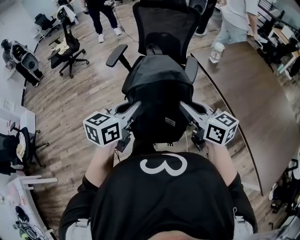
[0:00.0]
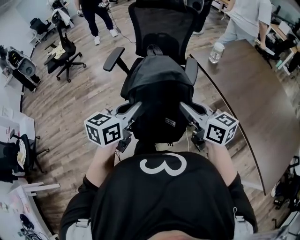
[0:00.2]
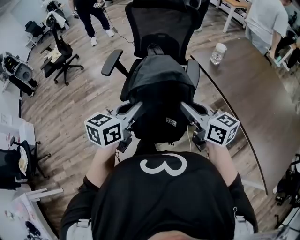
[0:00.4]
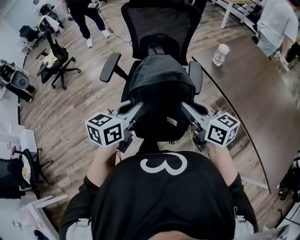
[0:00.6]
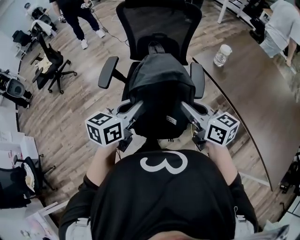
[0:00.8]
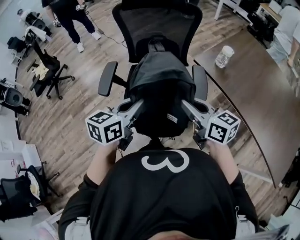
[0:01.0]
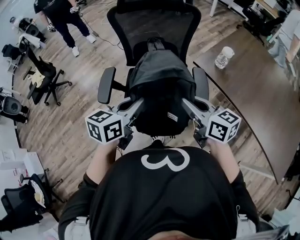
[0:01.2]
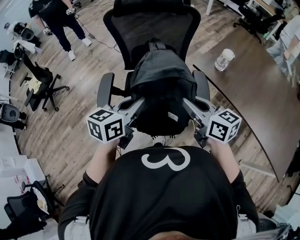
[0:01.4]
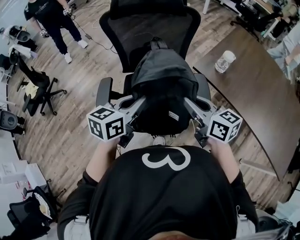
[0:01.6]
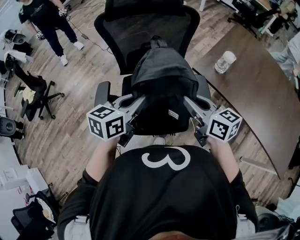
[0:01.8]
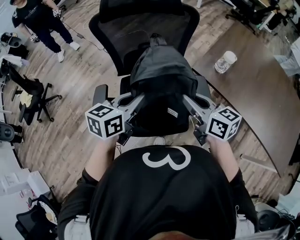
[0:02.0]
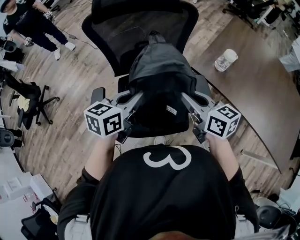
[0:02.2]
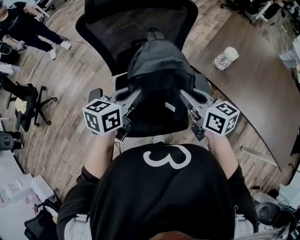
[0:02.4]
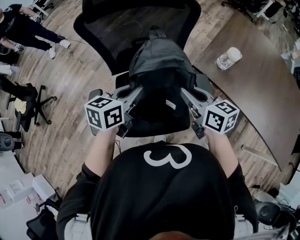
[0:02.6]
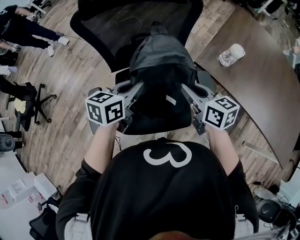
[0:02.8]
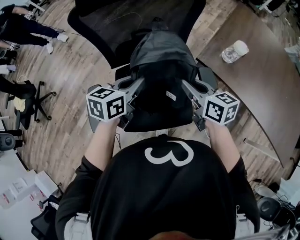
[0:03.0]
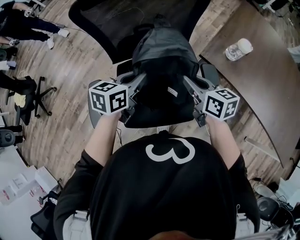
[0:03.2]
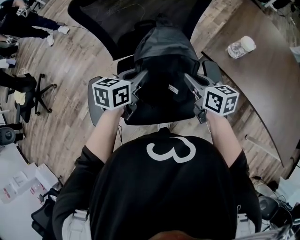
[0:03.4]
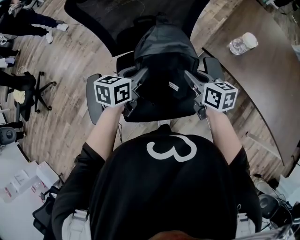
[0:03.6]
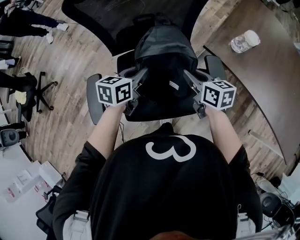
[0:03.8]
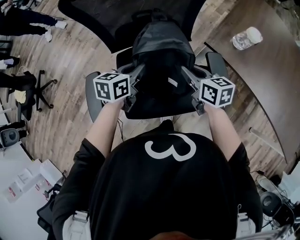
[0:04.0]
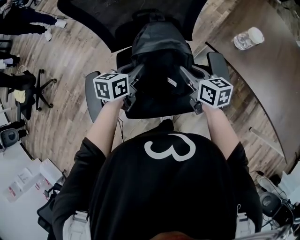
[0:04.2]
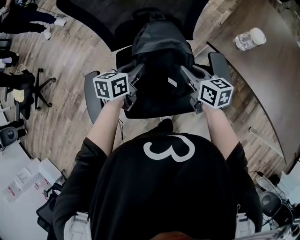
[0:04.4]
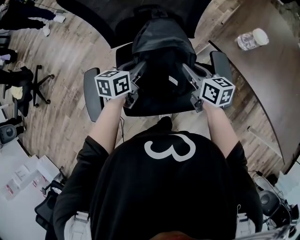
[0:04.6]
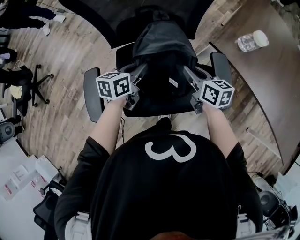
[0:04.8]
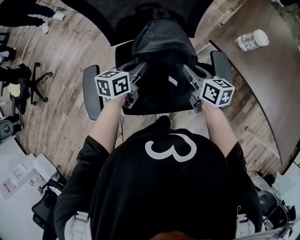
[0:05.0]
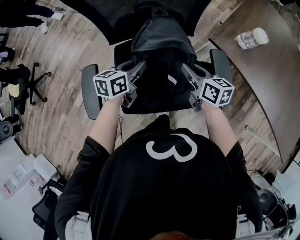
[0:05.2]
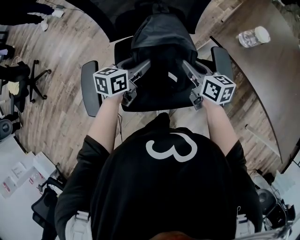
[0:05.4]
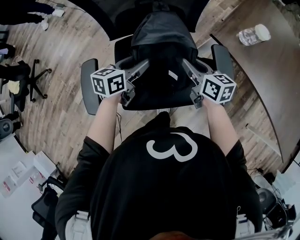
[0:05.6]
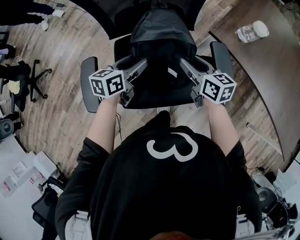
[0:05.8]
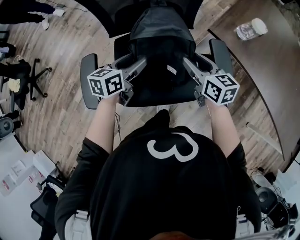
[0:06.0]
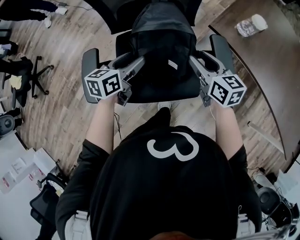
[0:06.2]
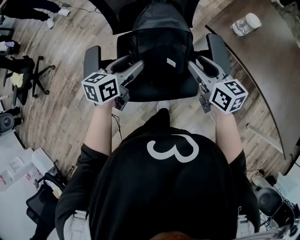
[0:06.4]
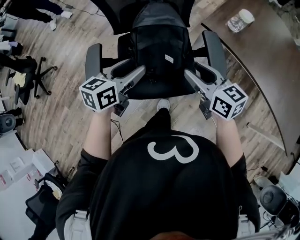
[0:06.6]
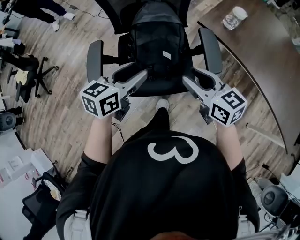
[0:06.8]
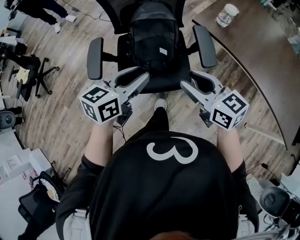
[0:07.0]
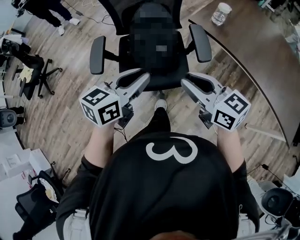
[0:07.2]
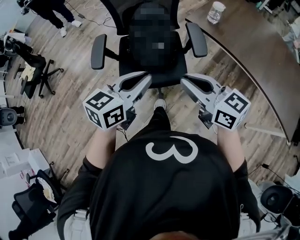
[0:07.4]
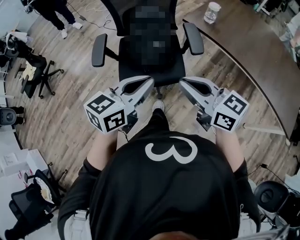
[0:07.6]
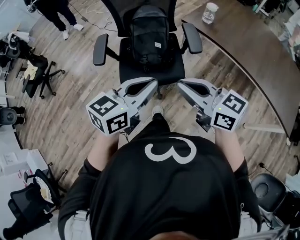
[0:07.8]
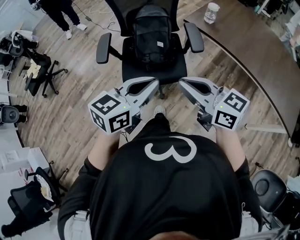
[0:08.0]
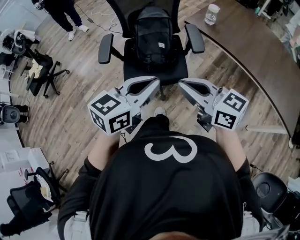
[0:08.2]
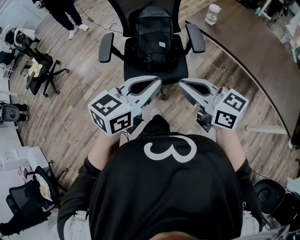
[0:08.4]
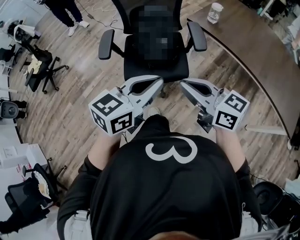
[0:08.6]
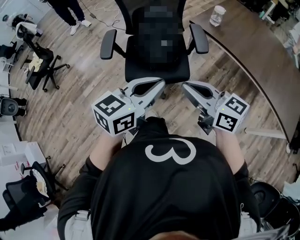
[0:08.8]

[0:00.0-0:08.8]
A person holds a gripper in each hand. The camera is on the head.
0:00.0 to 0:01.4: Both grippers travel together forward, approximately 30 cm.
0:01.4 to 0:03.0: The two grippers go approximately 20 cm forward and downward.
0:03.0 to 0:04.4: The grippers both shift downward by about 10 cm.
0:04.4 to 0:05.8: The left gripper opens up; the right gripper opens its fingers.
0:05.8 to 0:07.4: Both grippers travel together backward and upward, about 40 cm. The right gripper rotates roughly 30 degrees, and closes its fingers. The left gripper rotates roughly 20 degrees, and closes.
0:07.4 to 0:08.8: Both grippers move backward, about 10 cm.

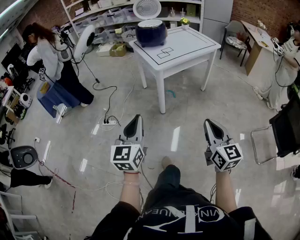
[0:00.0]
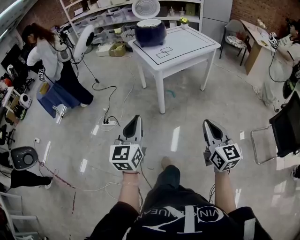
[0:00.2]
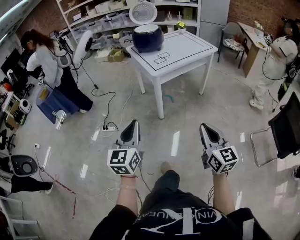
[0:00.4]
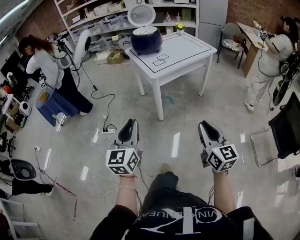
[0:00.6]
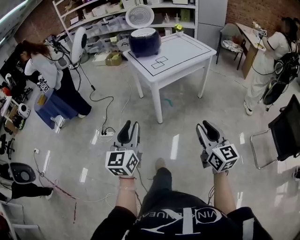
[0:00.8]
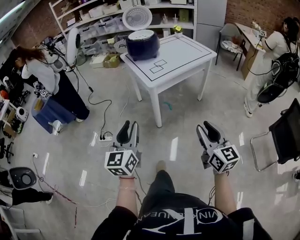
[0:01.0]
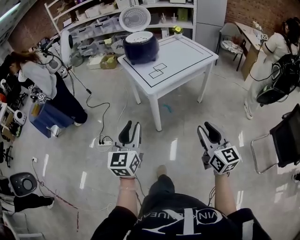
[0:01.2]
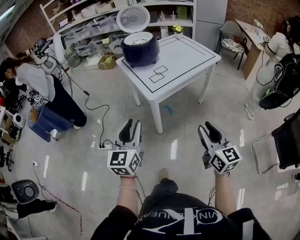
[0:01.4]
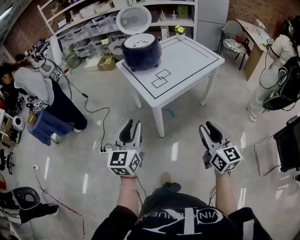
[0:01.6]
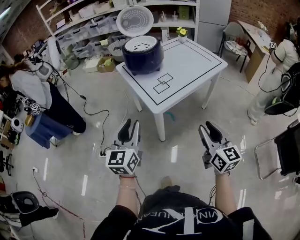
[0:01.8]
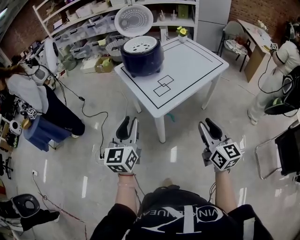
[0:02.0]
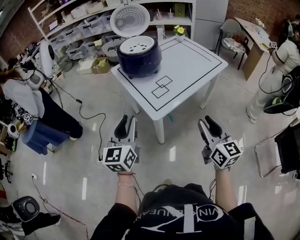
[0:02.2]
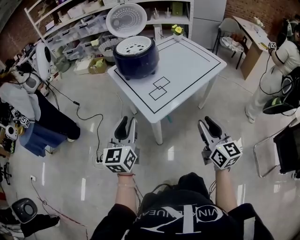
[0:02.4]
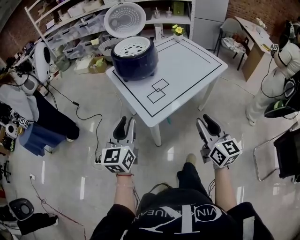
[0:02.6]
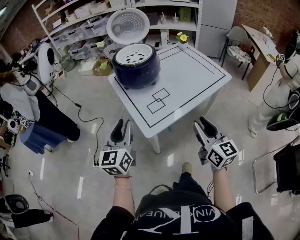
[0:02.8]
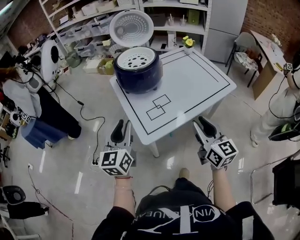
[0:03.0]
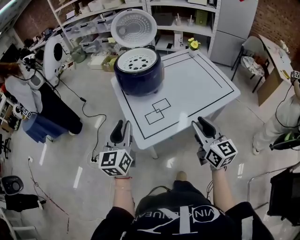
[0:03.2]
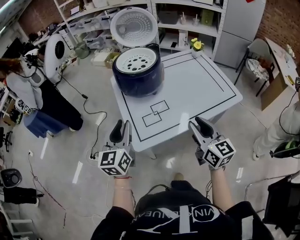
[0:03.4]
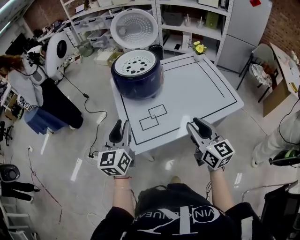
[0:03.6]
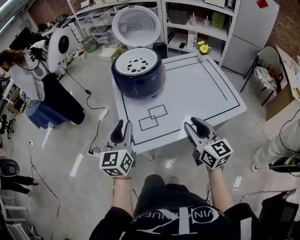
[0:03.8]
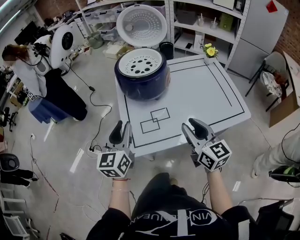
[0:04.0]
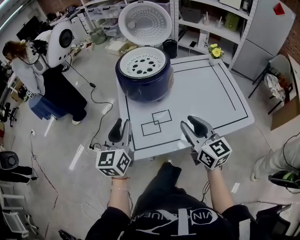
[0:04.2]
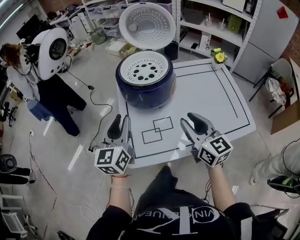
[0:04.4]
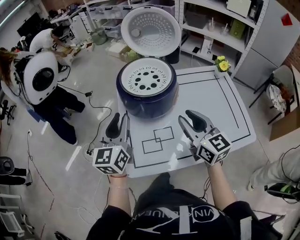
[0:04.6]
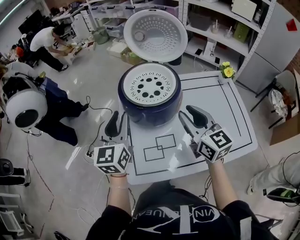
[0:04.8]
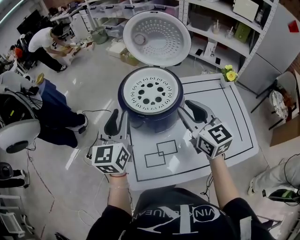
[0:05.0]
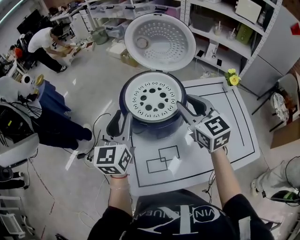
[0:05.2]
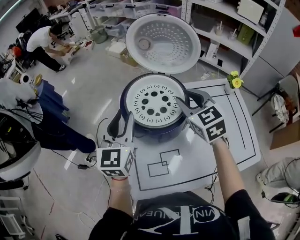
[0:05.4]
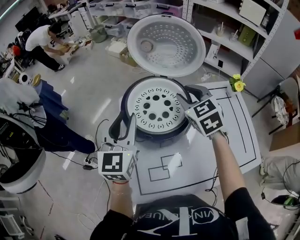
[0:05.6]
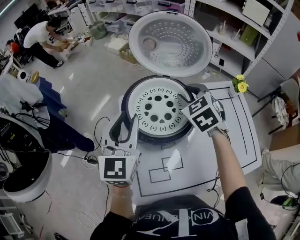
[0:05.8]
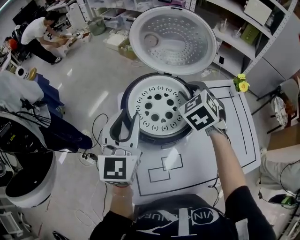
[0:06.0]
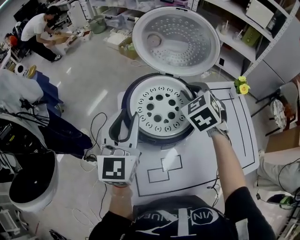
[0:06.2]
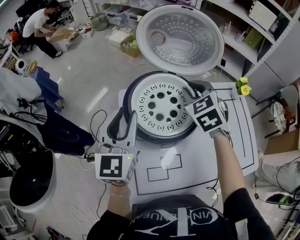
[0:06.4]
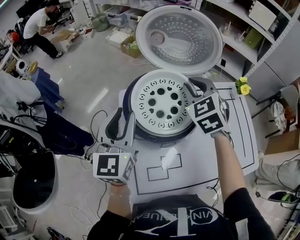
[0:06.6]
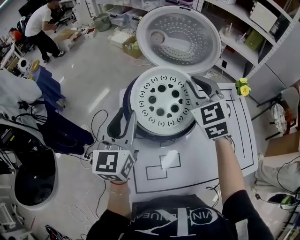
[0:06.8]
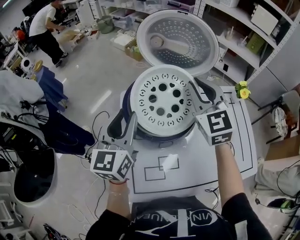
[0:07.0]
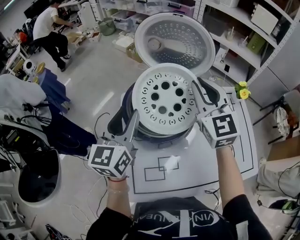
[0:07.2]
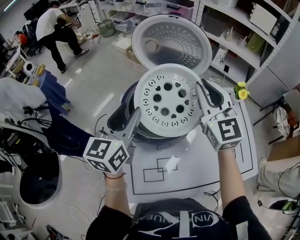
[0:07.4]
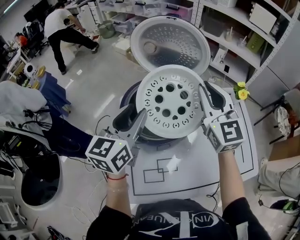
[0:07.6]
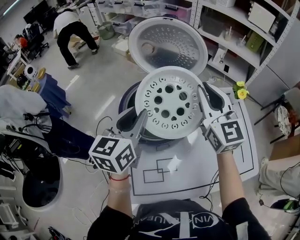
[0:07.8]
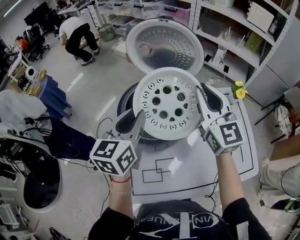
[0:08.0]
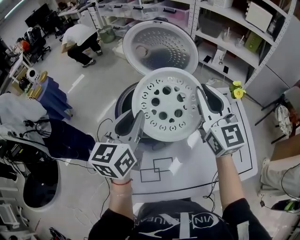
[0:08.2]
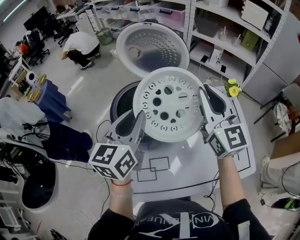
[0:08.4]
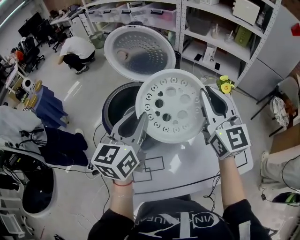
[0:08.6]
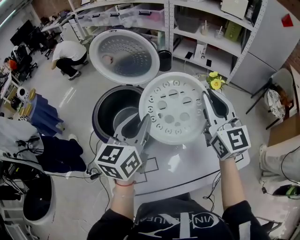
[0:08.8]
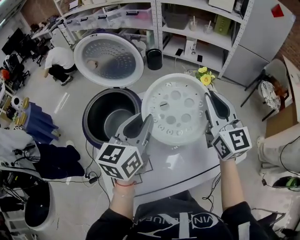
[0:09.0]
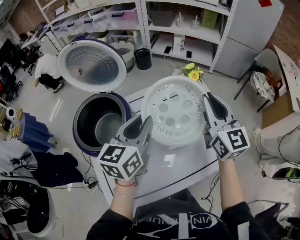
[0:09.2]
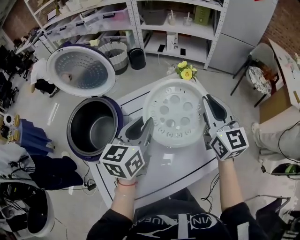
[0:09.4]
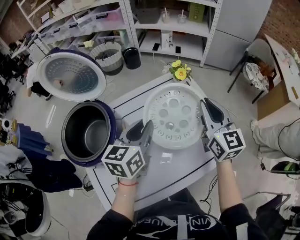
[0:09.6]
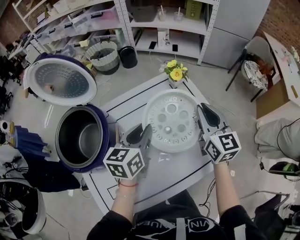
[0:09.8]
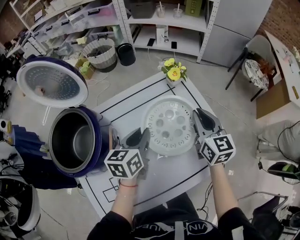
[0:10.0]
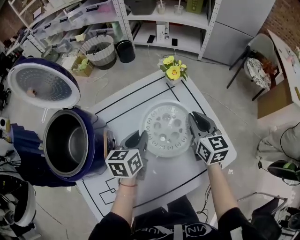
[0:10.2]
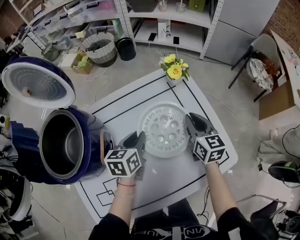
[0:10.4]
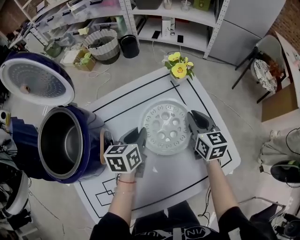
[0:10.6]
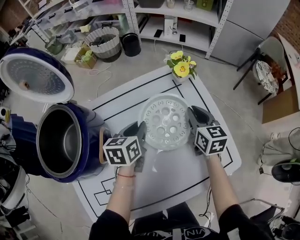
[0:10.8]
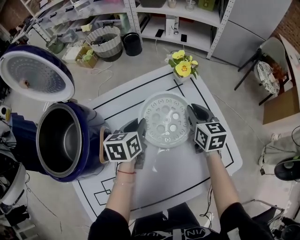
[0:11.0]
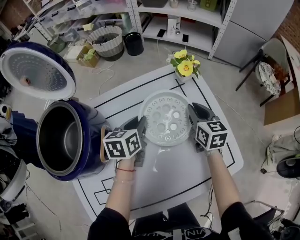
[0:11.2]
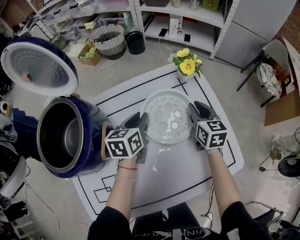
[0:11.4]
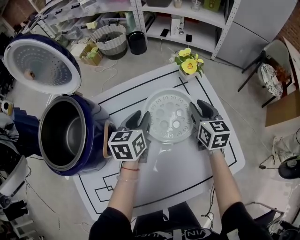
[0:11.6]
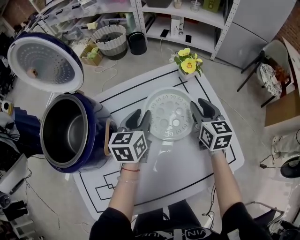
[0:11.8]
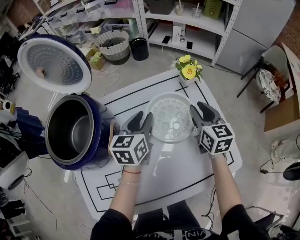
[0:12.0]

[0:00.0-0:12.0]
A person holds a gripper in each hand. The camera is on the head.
0:00.0 to 0:01.6: The two grippers go about 30 cm forward. The right gripper opens up.
0:01.6 to 0:03.0: Both grippers travel together forward, some 25 cm.
0:03.0 to 0:04.4: The right gripper goes about 20 cm forward, and rotates roughly 30 degrees. The left gripper heads forward and to the right, covering approximately 15 cm.
0:04.4 to 0:06.0: The right gripper shifts roughly 35 cm forward, and points its fingers approximately 40 degrees further downward. The left gripper travels forward by some 20 cm.
0:06.0 to 0:07.6: The left gripper turns by approximately 20 degrees; the right gripper shifts roughly 15 cm upward and backward, and angles its fingers upward, by some 40 degrees.
0:07.6 to 0:09.0: The grippers both shift to the right by roughly 20 cm.
0:09.0 to 0:10.4: Both grippers travel together downward and to the right, approximately 25 cm. The left gripper rotates some 30 degrees, while the right gripper turns by about 30 degrees.
0:10.4 to 0:12.0: The left gripper moves upward, some 5 cm.

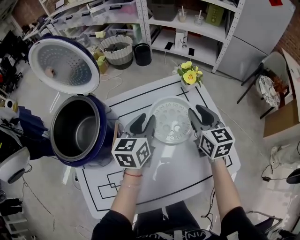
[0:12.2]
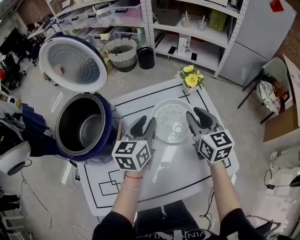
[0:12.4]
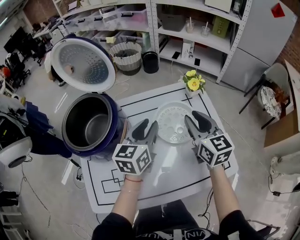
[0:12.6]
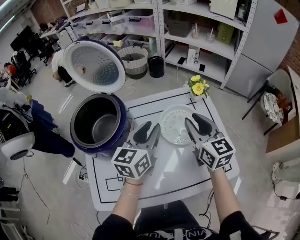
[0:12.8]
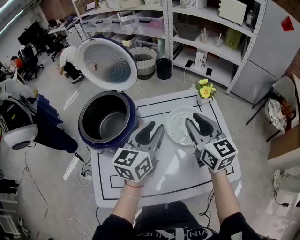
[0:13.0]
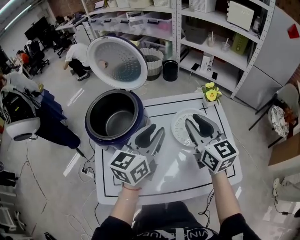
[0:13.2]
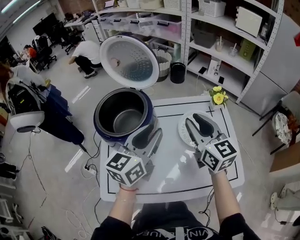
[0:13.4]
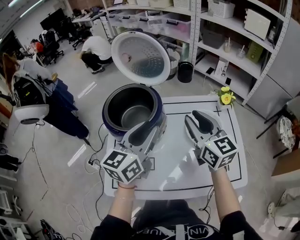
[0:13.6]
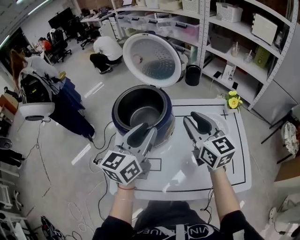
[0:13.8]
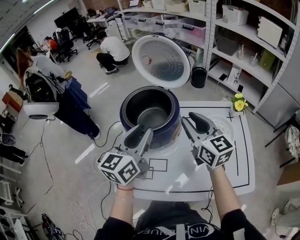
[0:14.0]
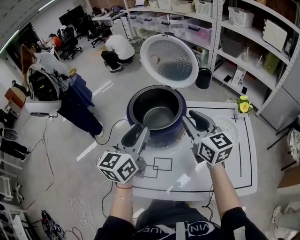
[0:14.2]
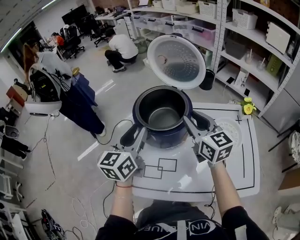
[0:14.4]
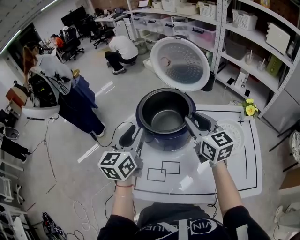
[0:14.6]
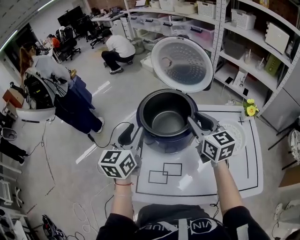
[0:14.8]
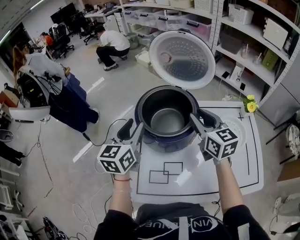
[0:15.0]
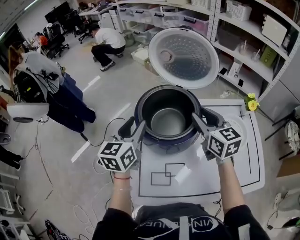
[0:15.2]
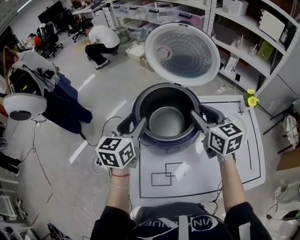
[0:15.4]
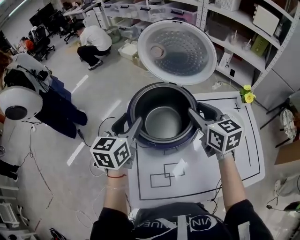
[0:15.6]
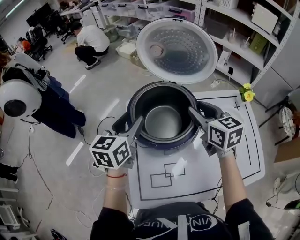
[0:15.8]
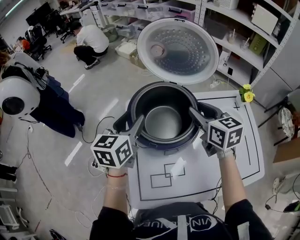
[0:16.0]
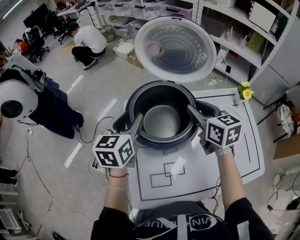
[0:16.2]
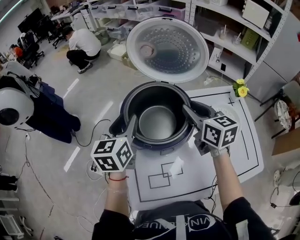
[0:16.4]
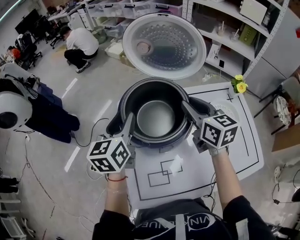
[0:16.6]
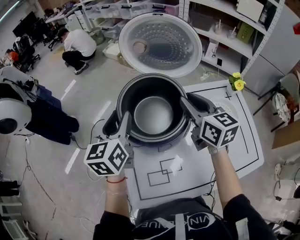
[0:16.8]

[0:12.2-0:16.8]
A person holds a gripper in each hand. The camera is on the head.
0:12.2 to 0:13.8: The right gripper travels to the left and upward by roughly 25 cm, and rotates approximately 30 degrees; the left gripper moves to the left, upward and backward, some 30 cm, and rotates some 20 degrees.
0:13.8 to 0:15.2: The left gripper travels to the left and forward by roughly 20 cm. The right gripper heads forward and to the left, covering about 10 cm.
0:15.2 to 0:16.8: The grippers make only small movements.
